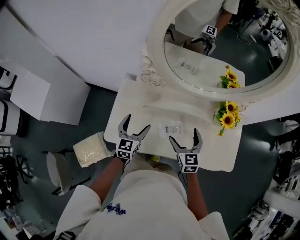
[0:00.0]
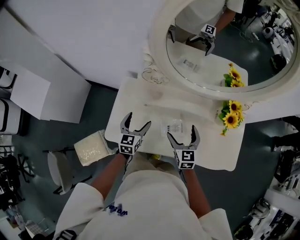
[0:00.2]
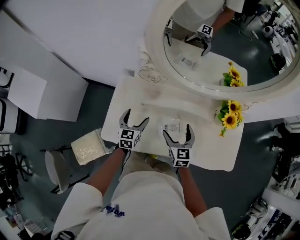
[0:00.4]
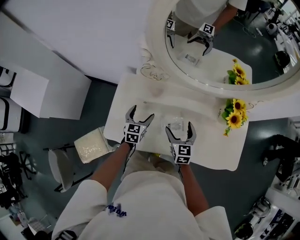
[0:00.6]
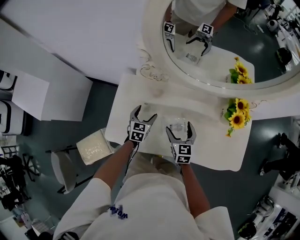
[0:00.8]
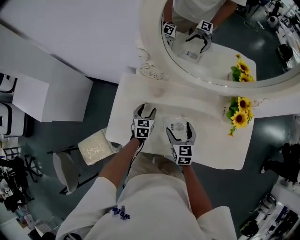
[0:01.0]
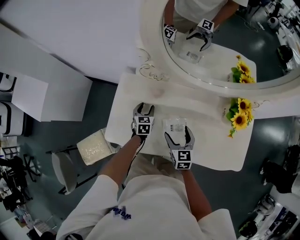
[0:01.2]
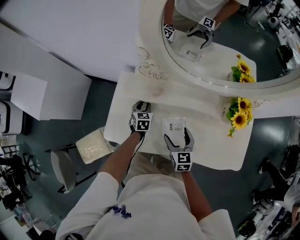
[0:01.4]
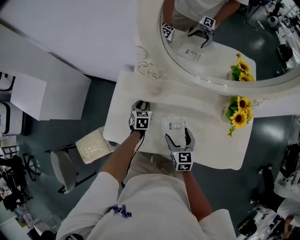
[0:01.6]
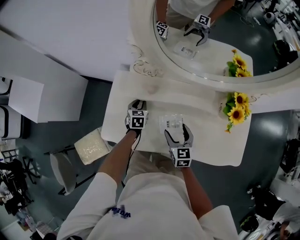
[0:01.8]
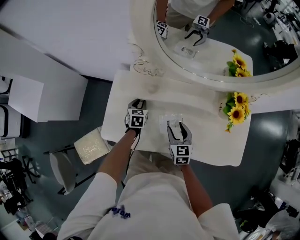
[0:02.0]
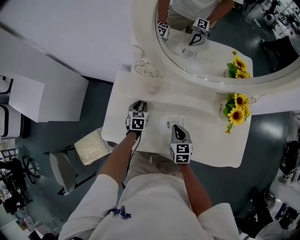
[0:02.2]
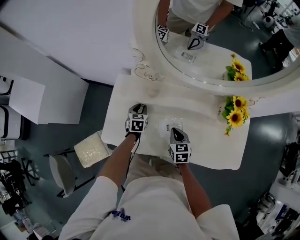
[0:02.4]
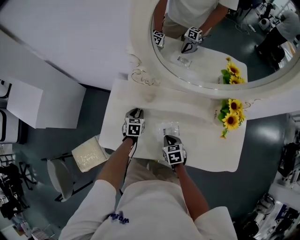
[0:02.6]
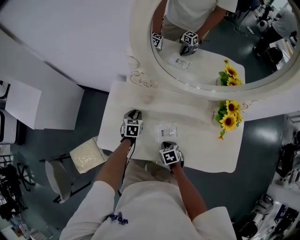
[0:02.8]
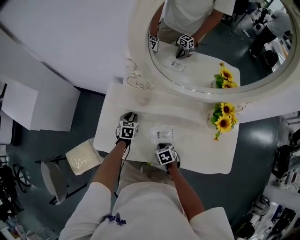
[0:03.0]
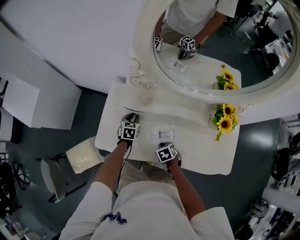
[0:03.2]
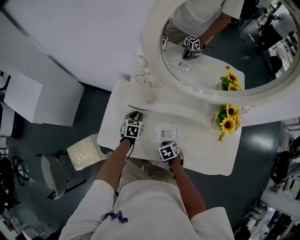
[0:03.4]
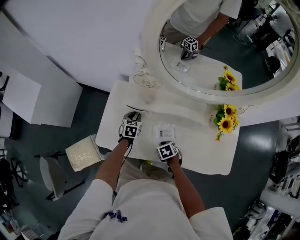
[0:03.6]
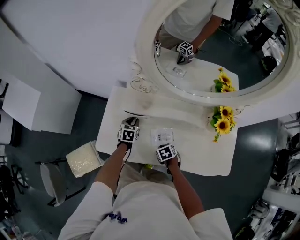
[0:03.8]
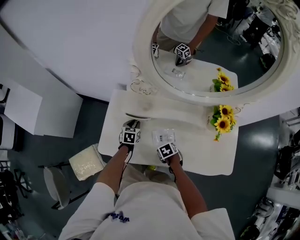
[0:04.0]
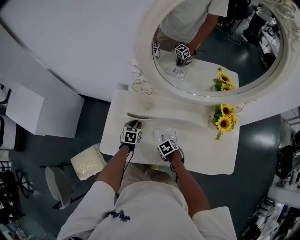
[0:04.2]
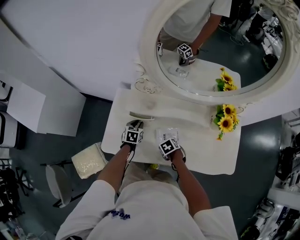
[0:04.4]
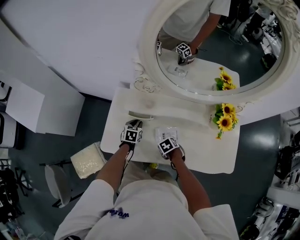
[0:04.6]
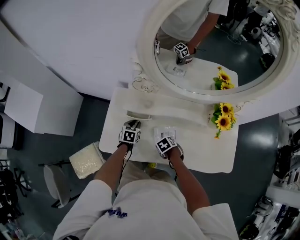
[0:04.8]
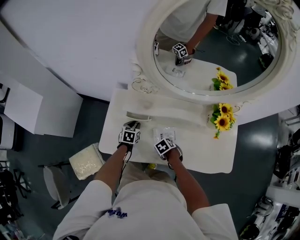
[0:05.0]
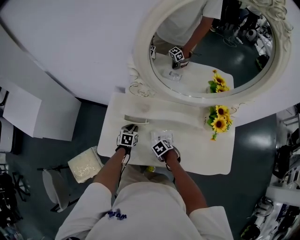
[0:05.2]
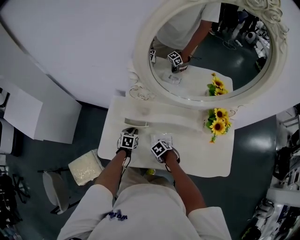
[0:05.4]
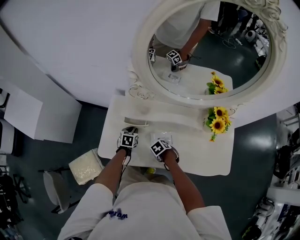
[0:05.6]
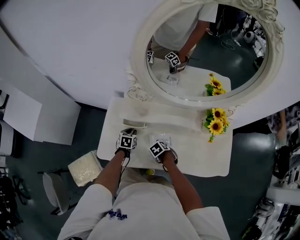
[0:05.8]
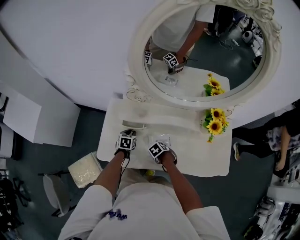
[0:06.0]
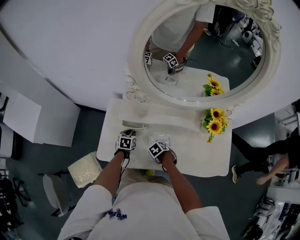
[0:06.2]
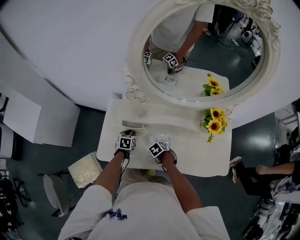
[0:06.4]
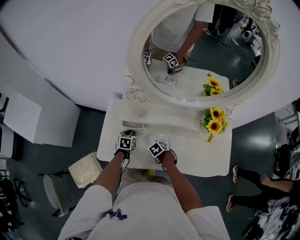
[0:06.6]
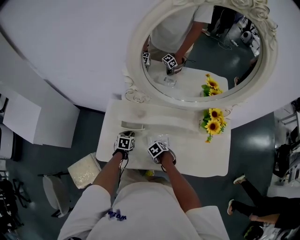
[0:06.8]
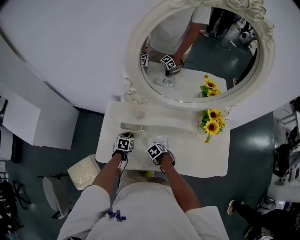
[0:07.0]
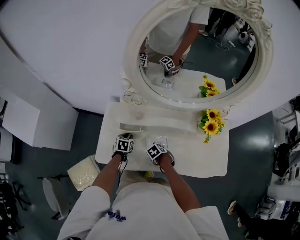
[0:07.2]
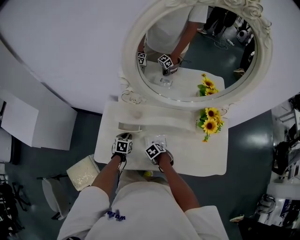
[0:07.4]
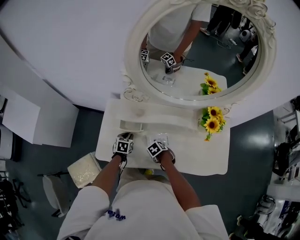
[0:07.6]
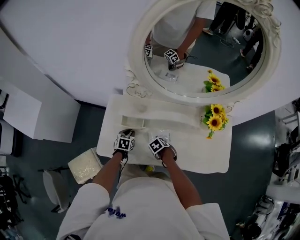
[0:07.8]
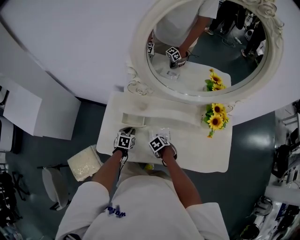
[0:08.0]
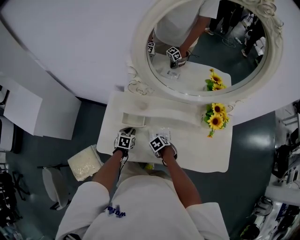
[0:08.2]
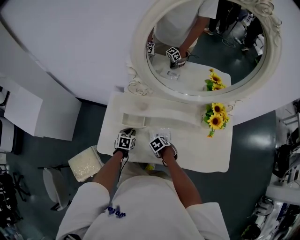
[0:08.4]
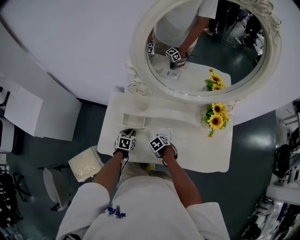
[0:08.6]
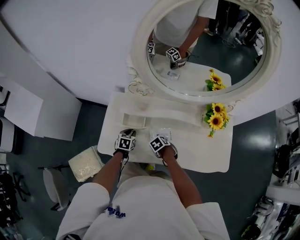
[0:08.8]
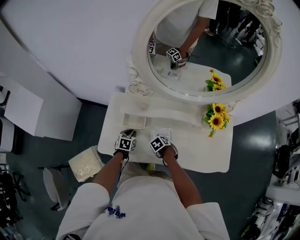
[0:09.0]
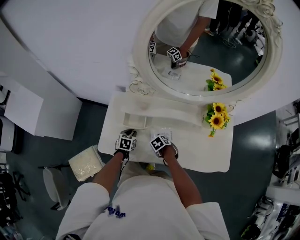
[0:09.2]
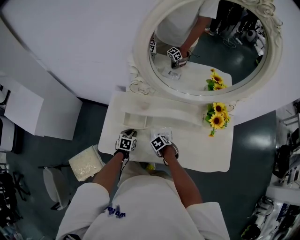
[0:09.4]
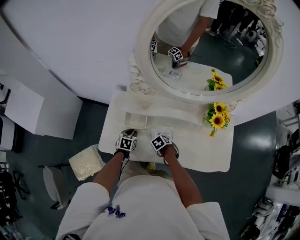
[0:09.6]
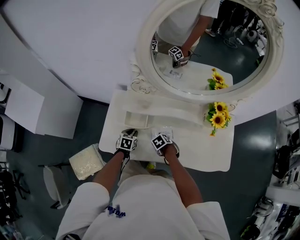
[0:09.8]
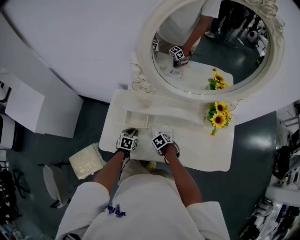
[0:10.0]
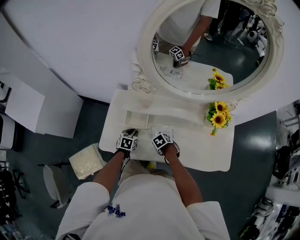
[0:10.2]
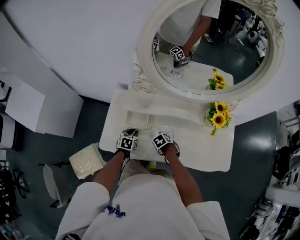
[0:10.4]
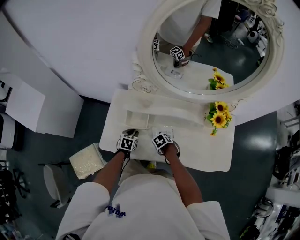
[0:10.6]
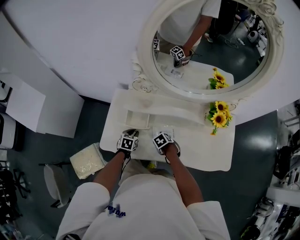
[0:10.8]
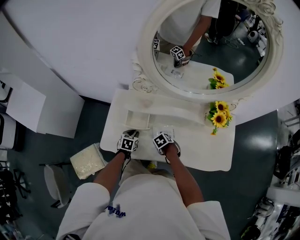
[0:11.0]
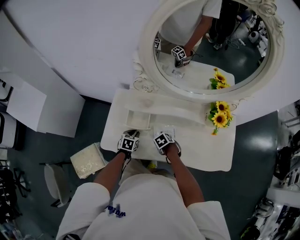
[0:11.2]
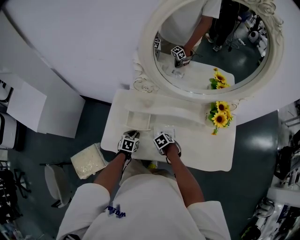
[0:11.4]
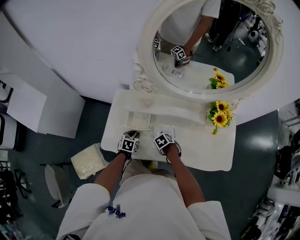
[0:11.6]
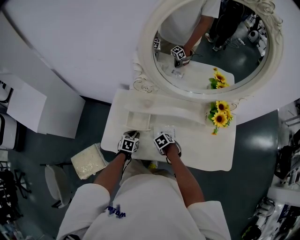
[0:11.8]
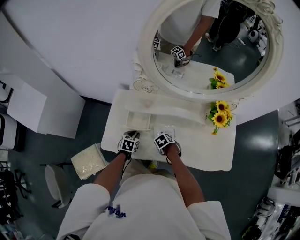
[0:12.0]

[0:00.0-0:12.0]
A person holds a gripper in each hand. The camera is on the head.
0:00.0 to 0:01.6: The left gripper moves downward and forward, some 20 cm, swivels about 30 degrees, and closes up. Meanwhile the right gripper heads downward, covering some 10 cm.
0:01.6 to 0:03.0: The right gripper moves downward, roughly 10 cm, tilts its fingers about 40 degrees downward, and closes.
0:03.0 to 0:04.4: The grippers move only a little.
0:04.4 to 0:09.0: The grippers stay close to where they were, moving slightly.
0:09.0 to 0:10.4: The two grippers keep their place.
0:10.4 to 0:12.0: The grippers stay close to where they were, moving slightly.

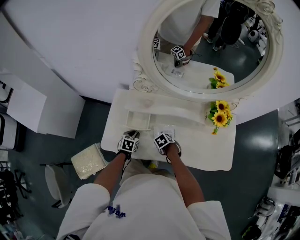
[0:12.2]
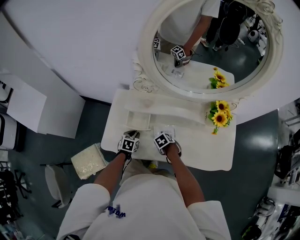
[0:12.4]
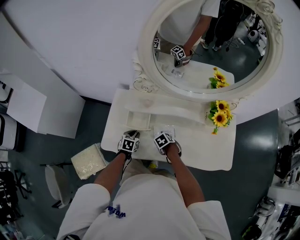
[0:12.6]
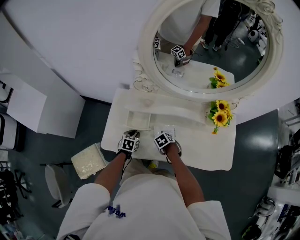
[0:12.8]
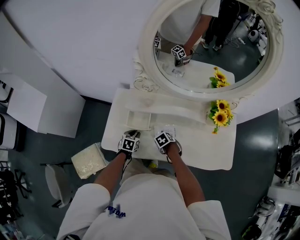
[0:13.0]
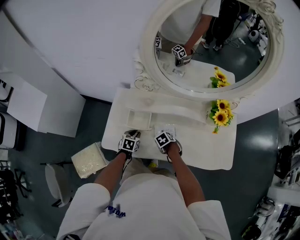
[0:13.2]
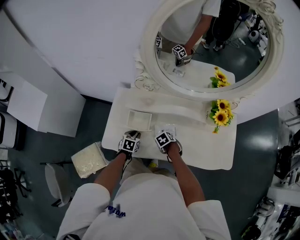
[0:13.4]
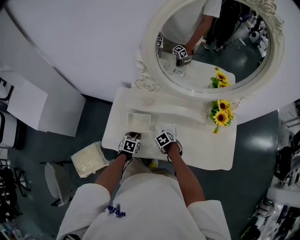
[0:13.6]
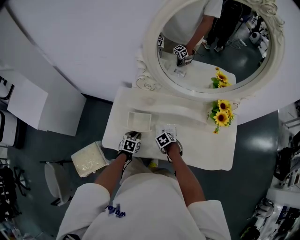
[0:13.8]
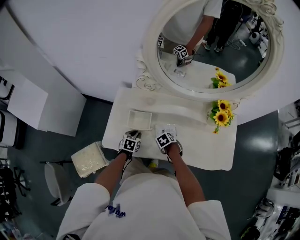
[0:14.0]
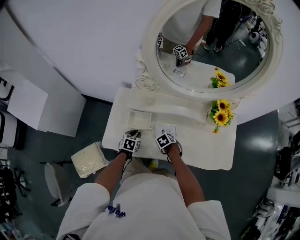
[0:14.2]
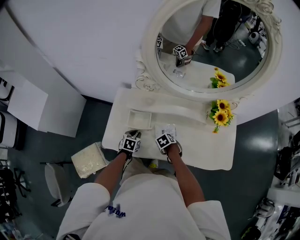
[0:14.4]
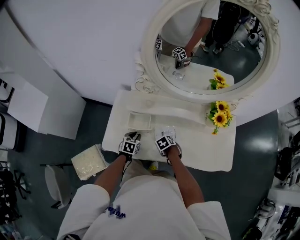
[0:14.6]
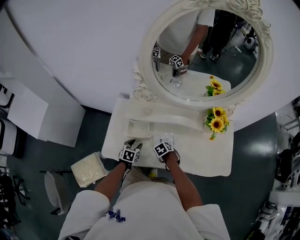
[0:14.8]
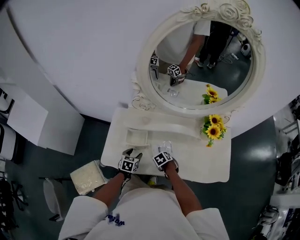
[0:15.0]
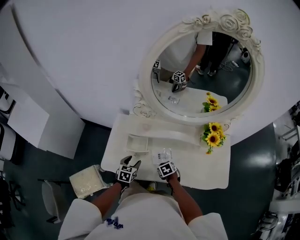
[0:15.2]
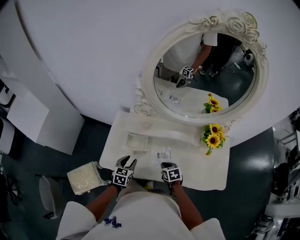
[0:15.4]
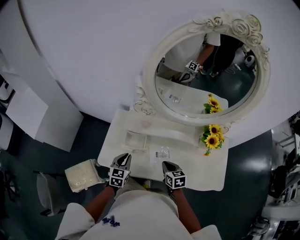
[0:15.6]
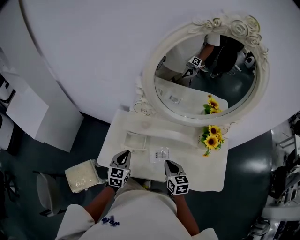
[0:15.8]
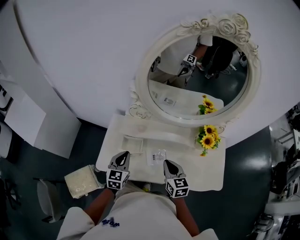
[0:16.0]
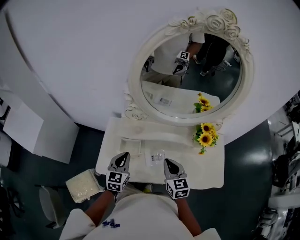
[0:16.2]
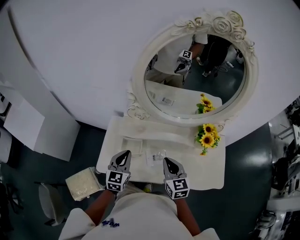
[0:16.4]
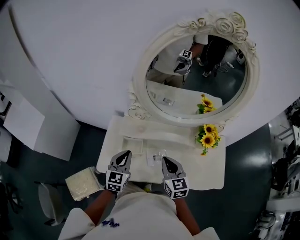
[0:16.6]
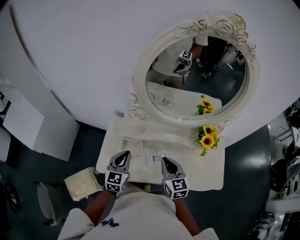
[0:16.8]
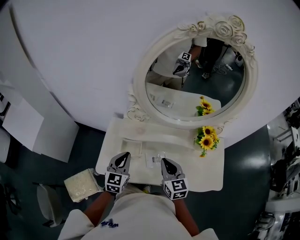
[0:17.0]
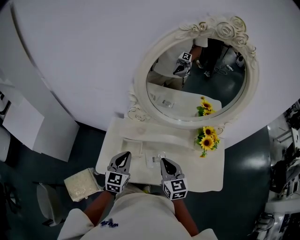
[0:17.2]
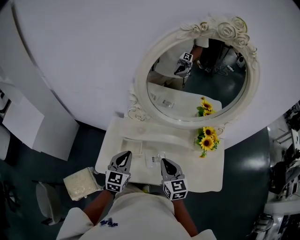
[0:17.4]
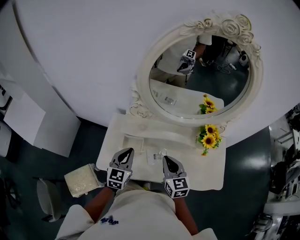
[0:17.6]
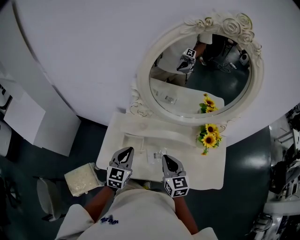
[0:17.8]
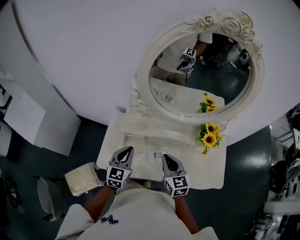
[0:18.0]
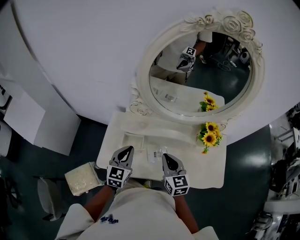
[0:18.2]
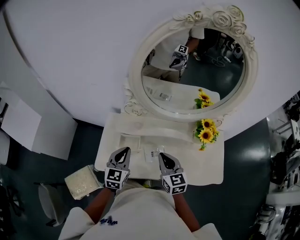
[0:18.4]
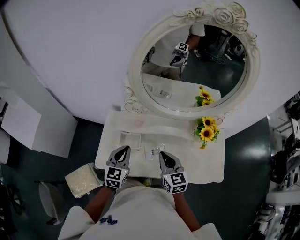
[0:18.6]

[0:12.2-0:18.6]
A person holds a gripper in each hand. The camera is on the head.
0:12.2 to 0:13.8: The grippers make only small movements.
0:13.8 to 0:15.4: Both grippers move upward, some 10 cm. The right gripper rotates some 30 degrees.
0:15.4 to 0:17.0: Both grippers travel together upward, roughly 20 cm. The right gripper tips its fingers upward by roughly 40 degrees. The left gripper turns by about 20 degrees.
0:17.0 to 0:18.6: The two grippers keep their place.

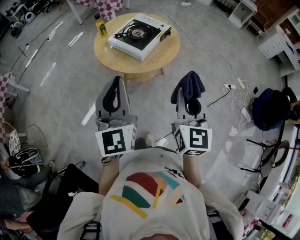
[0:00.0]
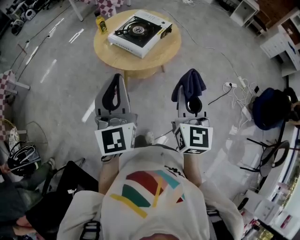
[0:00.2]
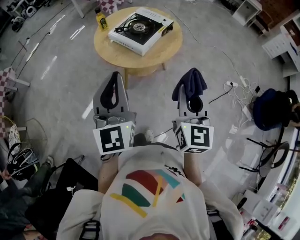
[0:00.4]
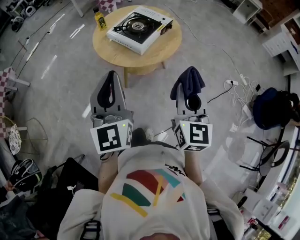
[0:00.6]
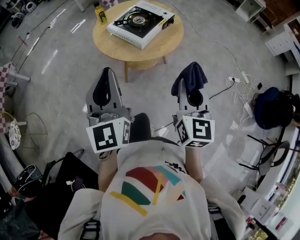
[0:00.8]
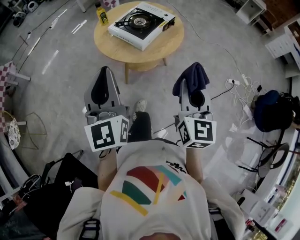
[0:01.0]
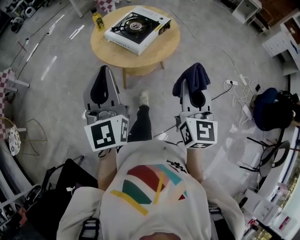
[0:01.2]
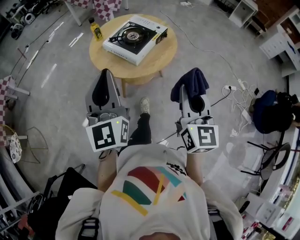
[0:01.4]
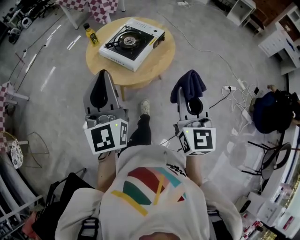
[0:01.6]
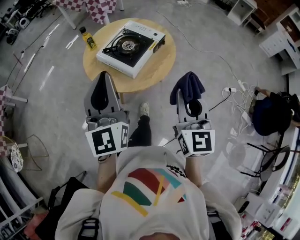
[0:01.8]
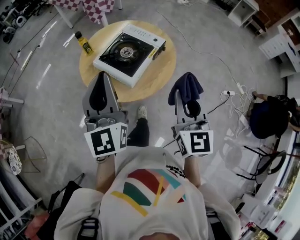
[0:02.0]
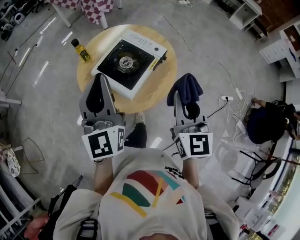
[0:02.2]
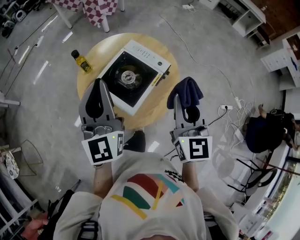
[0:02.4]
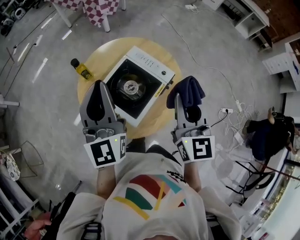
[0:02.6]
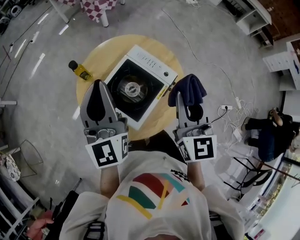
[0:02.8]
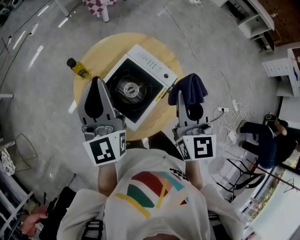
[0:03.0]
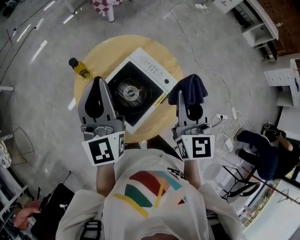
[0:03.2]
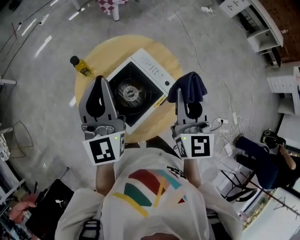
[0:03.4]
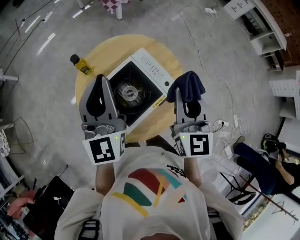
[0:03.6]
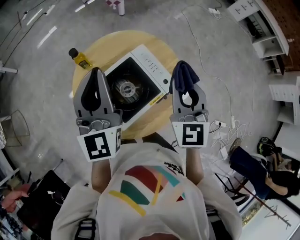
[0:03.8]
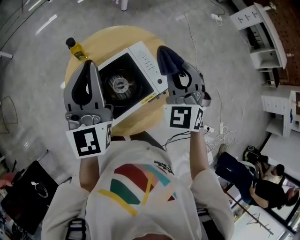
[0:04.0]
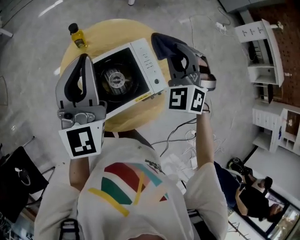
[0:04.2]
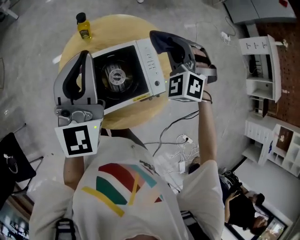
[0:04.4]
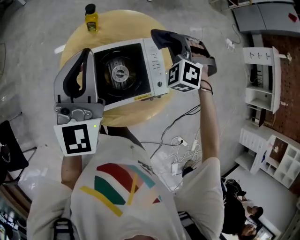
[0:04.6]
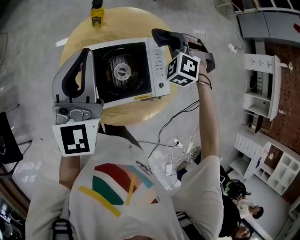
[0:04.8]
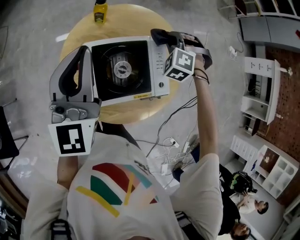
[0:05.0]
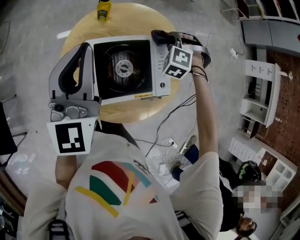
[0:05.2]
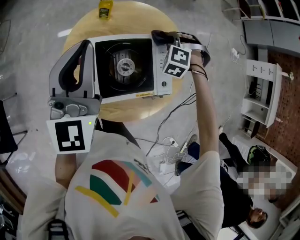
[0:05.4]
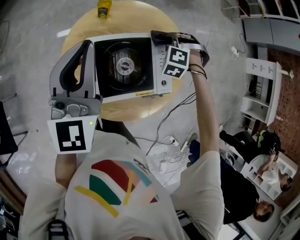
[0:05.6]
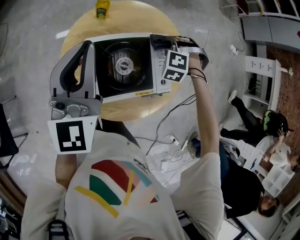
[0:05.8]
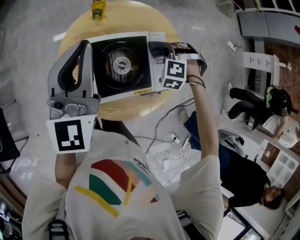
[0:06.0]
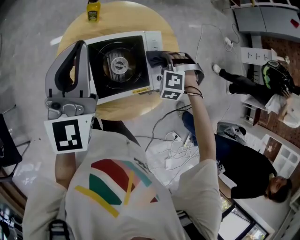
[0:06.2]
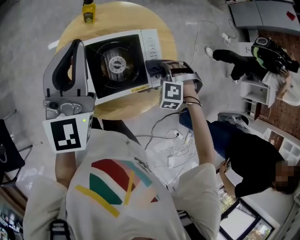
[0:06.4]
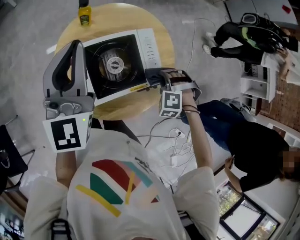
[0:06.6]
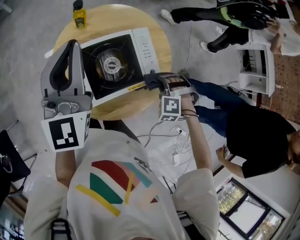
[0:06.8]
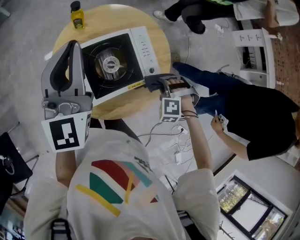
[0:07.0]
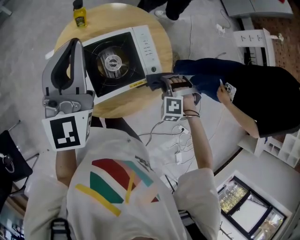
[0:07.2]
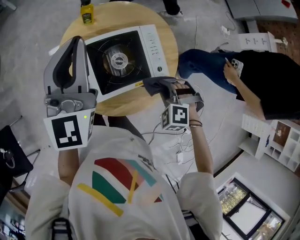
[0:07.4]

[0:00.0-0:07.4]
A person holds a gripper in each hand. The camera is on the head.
0:00.0 to 0:01.4: The right gripper changes place by about 5 cm.
0:01.4 to 0:03.0: The two grippers travel together, forward, approximately 40 cm.
0:03.0 to 0:04.4: The right gripper shifts about 20 cm forward and downward, and rotates around the line of its fingers by about 80 degrees, counterclockwise from behind.
0:04.4 to 0:06.0: The right gripper heads downward, covering about 15 cm, and changes its angle by some 40 degrees.
0:06.0 to 0:07.4: The right gripper shifts approximately 20 cm backward.
